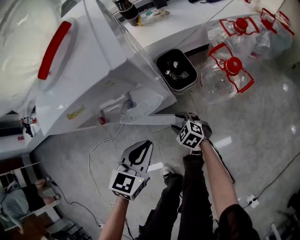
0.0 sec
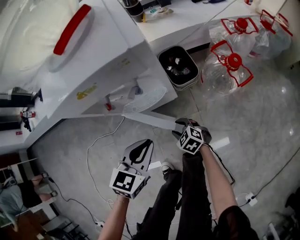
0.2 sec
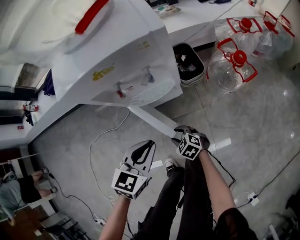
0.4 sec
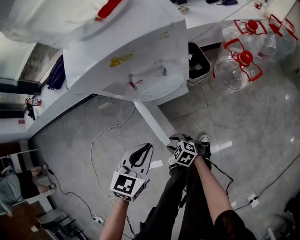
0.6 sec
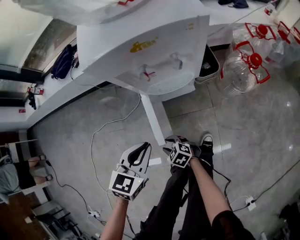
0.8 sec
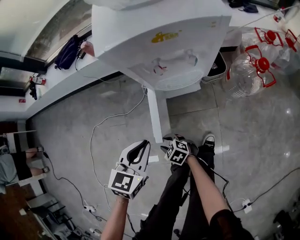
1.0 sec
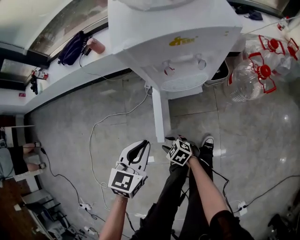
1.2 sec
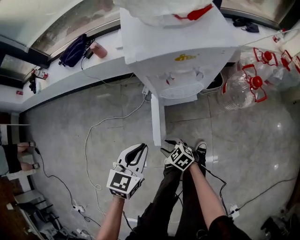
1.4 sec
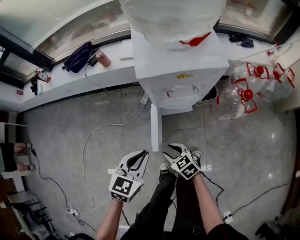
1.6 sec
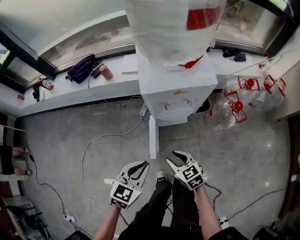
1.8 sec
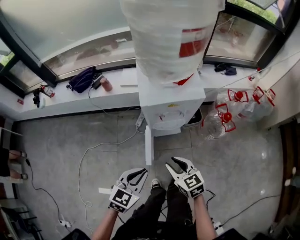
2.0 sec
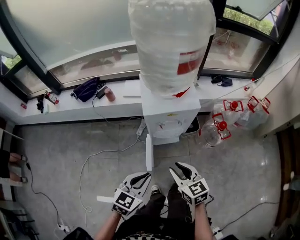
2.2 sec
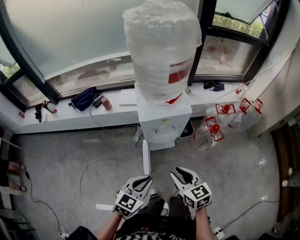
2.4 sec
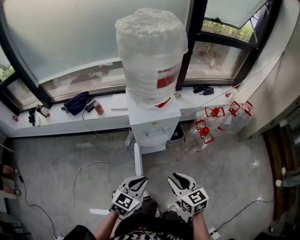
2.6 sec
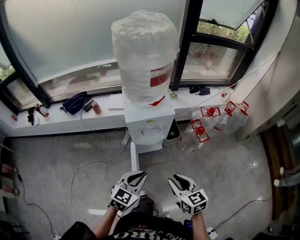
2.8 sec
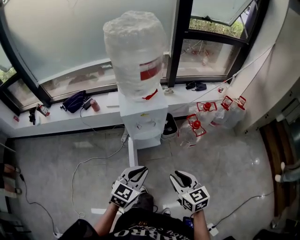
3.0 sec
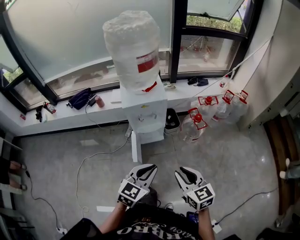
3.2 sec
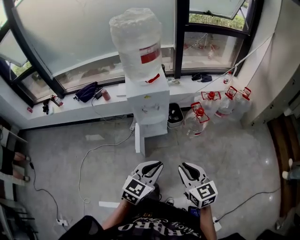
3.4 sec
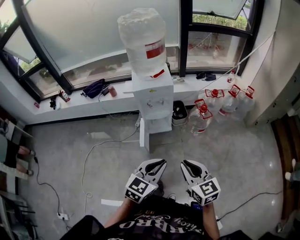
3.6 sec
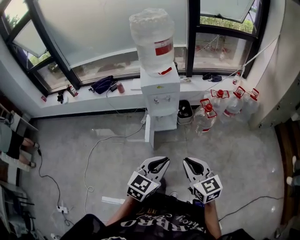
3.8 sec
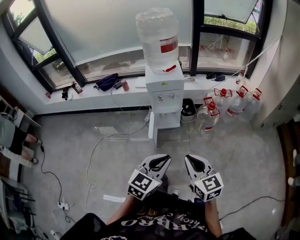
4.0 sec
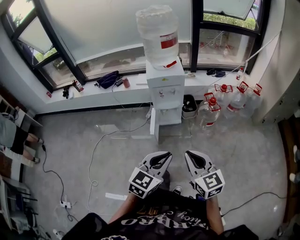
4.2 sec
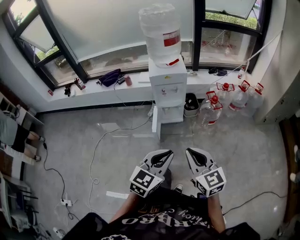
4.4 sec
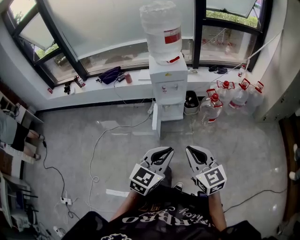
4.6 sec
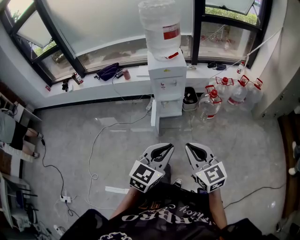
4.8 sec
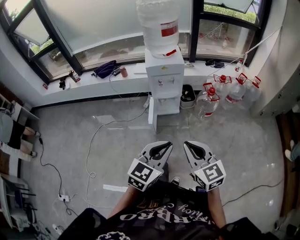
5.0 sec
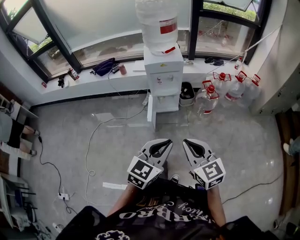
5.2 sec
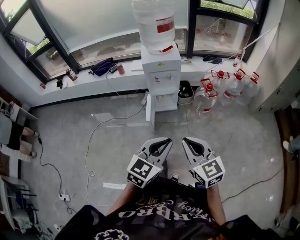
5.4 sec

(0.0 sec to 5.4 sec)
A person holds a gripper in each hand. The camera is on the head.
0.0 sec - 1.4 sec: Both grippers travel together to the left, roughly 25 cm.
1.4 sec - 2.8 sec: The left gripper moves upward, approximately 25 cm, and rotates about 20 degrees. Meanwhile the right gripper travels upward by roughly 50 cm, and rotates roughly 40 degrees.
2.8 sec - 4.0 sec: The right gripper goes some 25 cm backward; the left gripper goes some 30 cm backward and to the right.
4.0 sec - 5.4 sec: There are only small adjustments of the grippers.

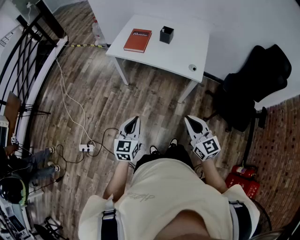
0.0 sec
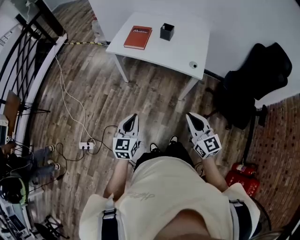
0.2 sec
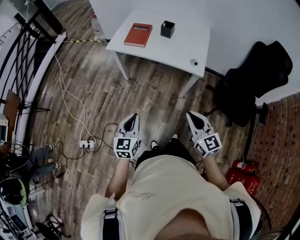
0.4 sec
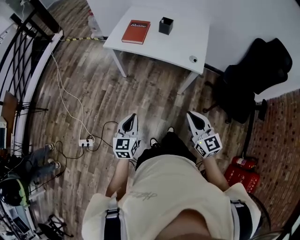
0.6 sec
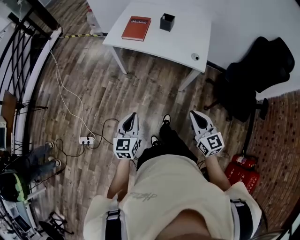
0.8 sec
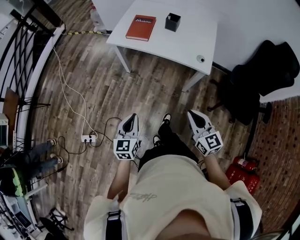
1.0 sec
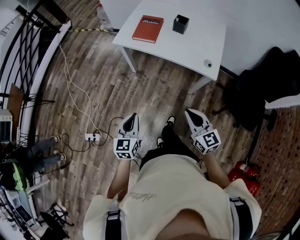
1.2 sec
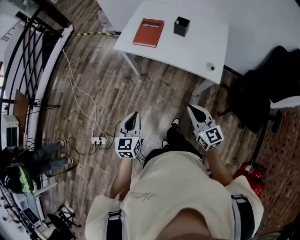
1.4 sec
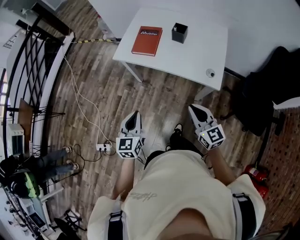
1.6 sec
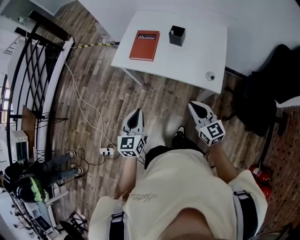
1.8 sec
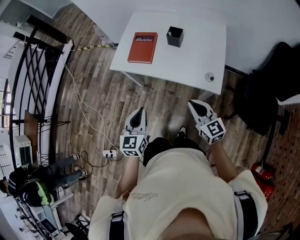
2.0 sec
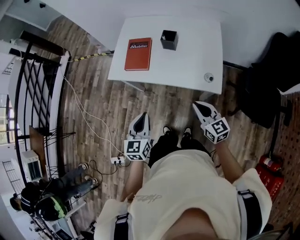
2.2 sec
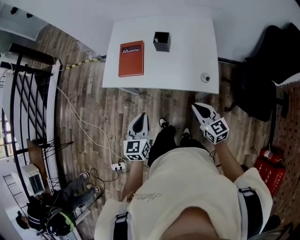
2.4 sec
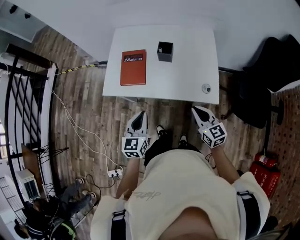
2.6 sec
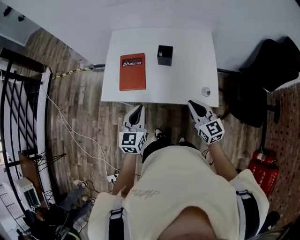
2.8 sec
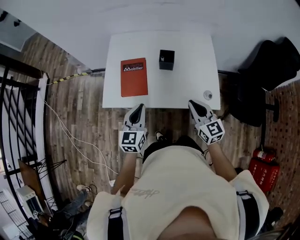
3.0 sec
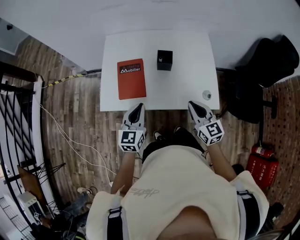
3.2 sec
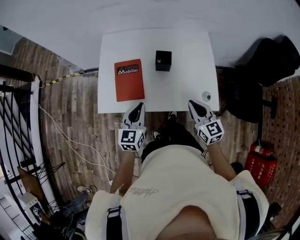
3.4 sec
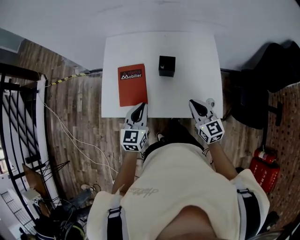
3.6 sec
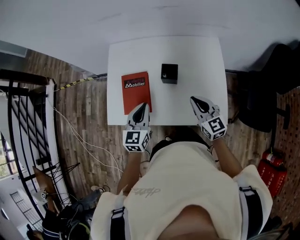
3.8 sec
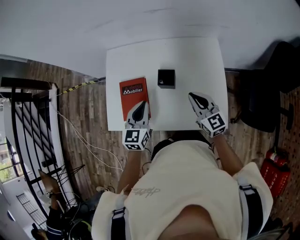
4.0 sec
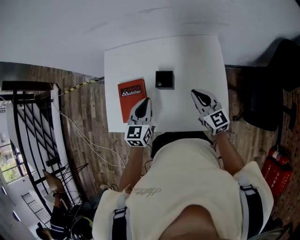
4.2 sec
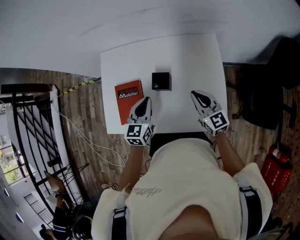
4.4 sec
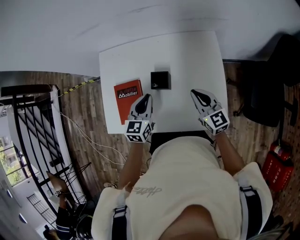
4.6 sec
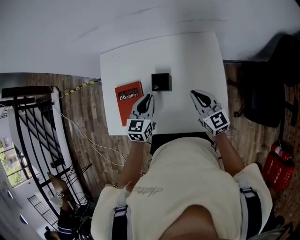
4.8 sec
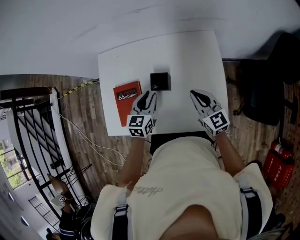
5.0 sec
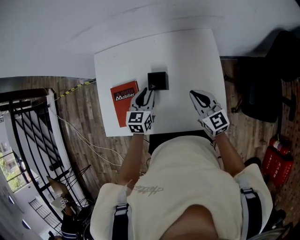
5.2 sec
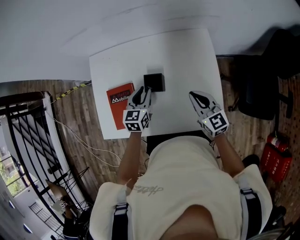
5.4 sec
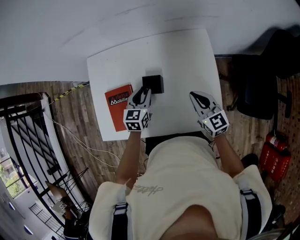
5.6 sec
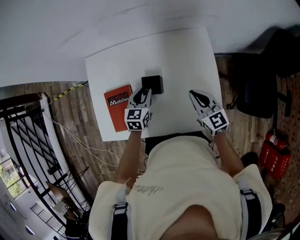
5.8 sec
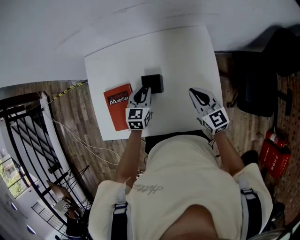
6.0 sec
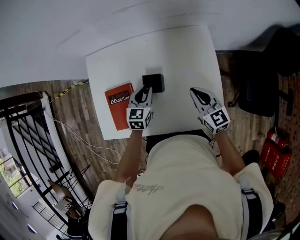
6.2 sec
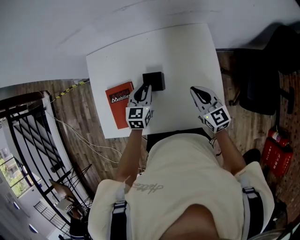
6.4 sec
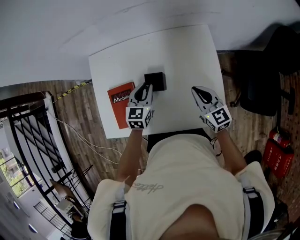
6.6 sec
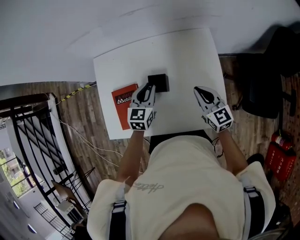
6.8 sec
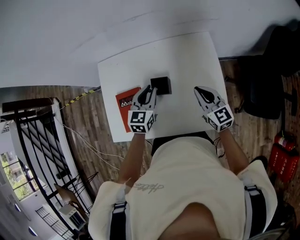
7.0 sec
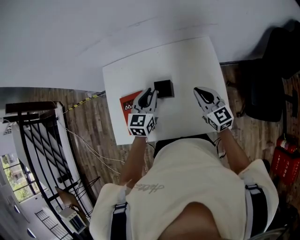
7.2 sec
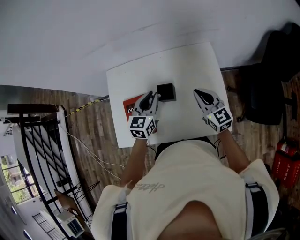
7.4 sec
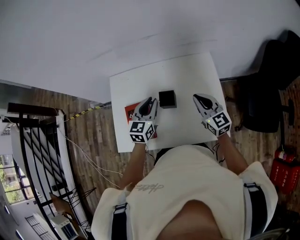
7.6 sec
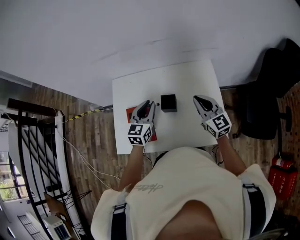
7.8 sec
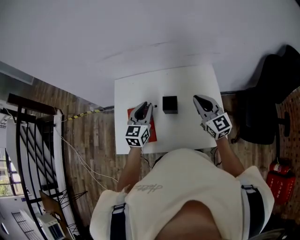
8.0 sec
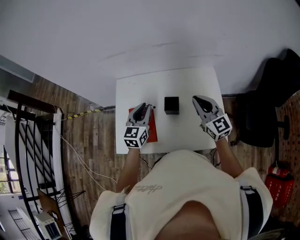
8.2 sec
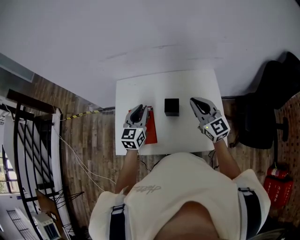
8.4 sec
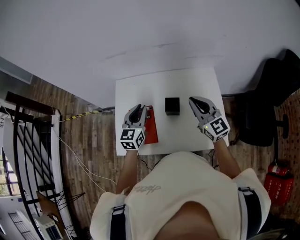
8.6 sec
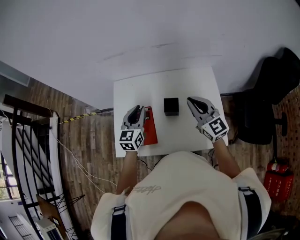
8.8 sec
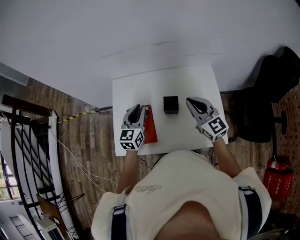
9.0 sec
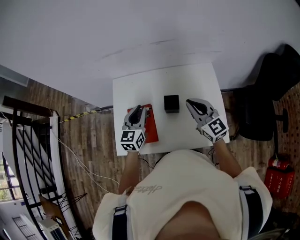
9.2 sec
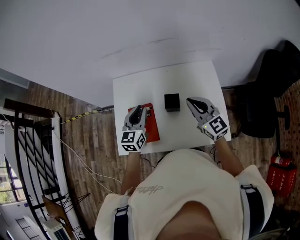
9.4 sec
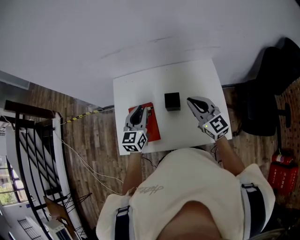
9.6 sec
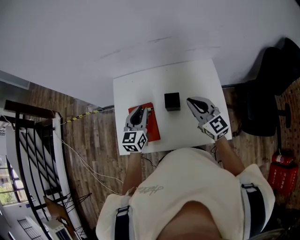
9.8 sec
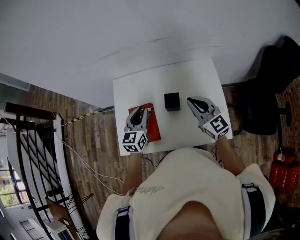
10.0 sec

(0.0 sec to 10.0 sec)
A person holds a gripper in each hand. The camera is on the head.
0.0 sec - 1.4 sec: Both grippers move forward, some 10 cm.
1.4 sec - 2.8 sec: Both grippers move forward, some 25 cm. The left gripper swivels approximately 20 degrees.
2.8 sec - 4.2 sec: The two grippers go roughly 25 cm forward.
4.2 sec - 5.8 sec: The left gripper heads downward and forward, covering approximately 10 cm, and opens up.
5.8 sec - 7.2 sec: The right gripper moves approximately 5 cm. The left gripper is displaced upward by some 10 cm.
7.2 sec - 8.6 sec: The left gripper is displaced to the left and upward by roughly 15 cm. The right gripper shifts some 15 cm upward and to the left.
8.6 sec - 10.0 sec: There are only small adjustments of the grippers.

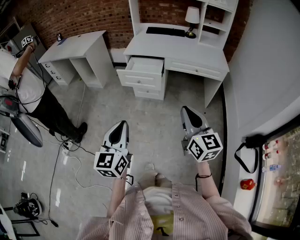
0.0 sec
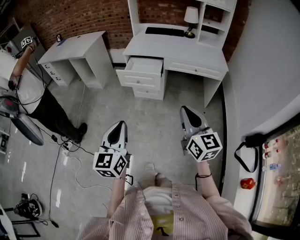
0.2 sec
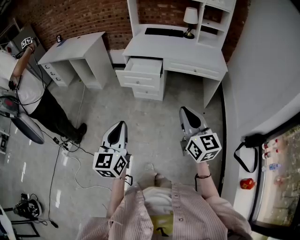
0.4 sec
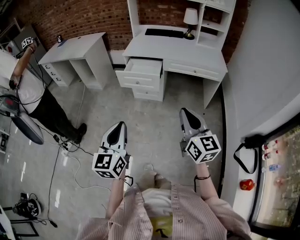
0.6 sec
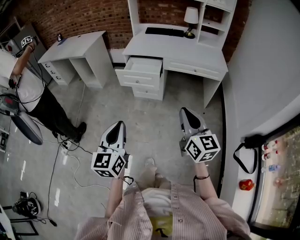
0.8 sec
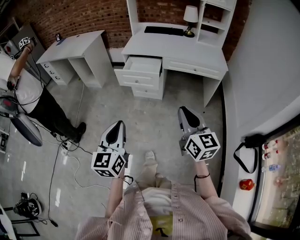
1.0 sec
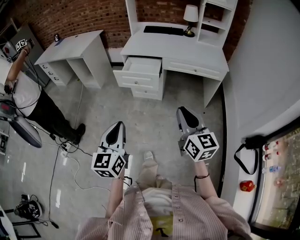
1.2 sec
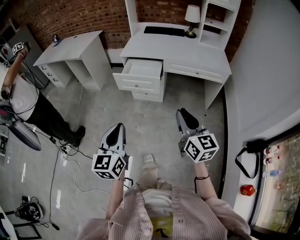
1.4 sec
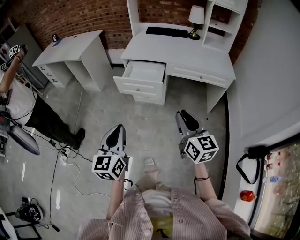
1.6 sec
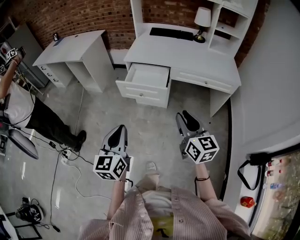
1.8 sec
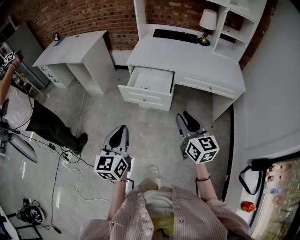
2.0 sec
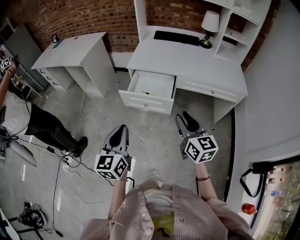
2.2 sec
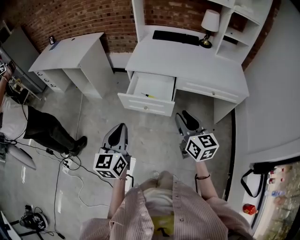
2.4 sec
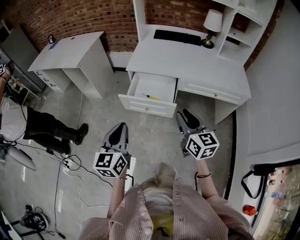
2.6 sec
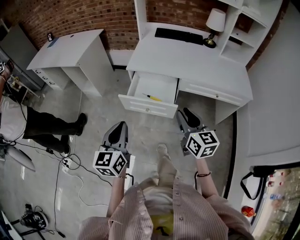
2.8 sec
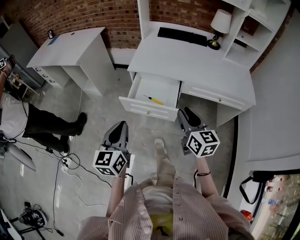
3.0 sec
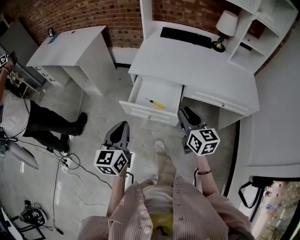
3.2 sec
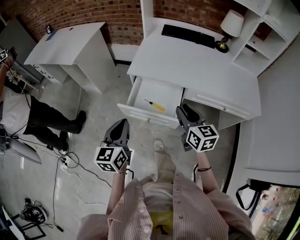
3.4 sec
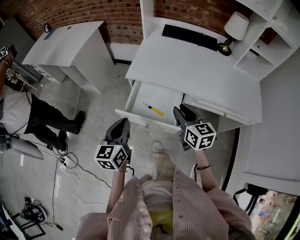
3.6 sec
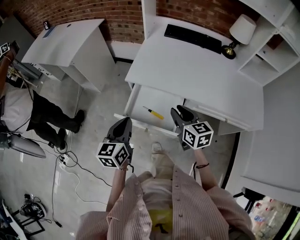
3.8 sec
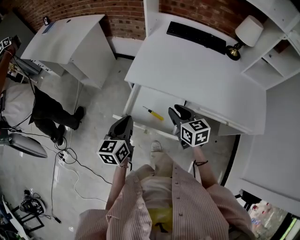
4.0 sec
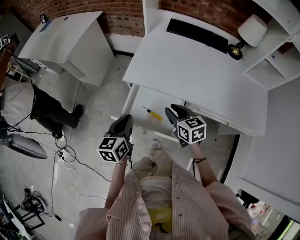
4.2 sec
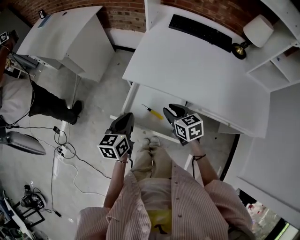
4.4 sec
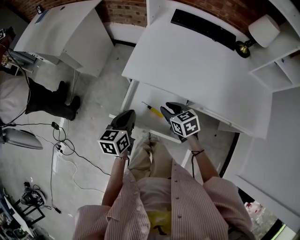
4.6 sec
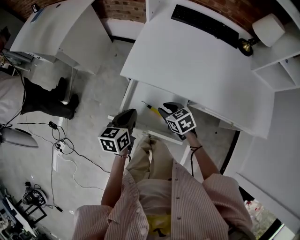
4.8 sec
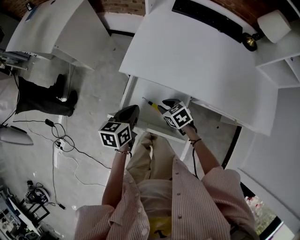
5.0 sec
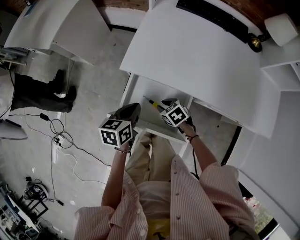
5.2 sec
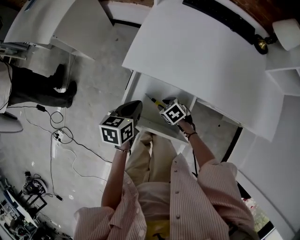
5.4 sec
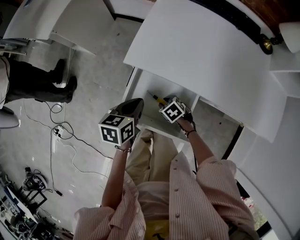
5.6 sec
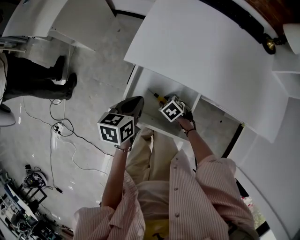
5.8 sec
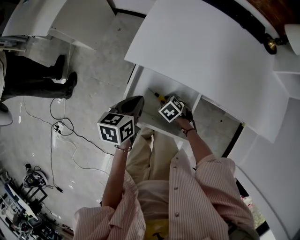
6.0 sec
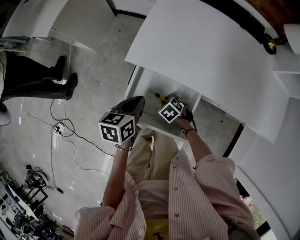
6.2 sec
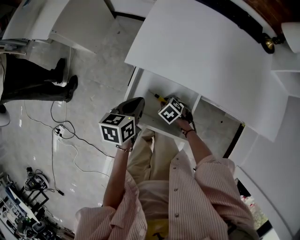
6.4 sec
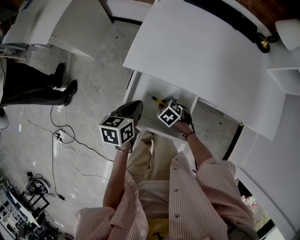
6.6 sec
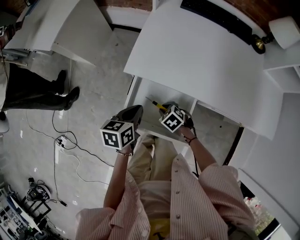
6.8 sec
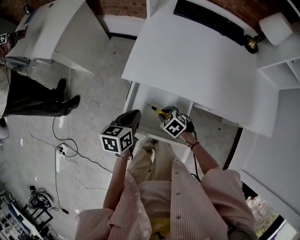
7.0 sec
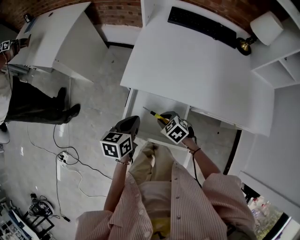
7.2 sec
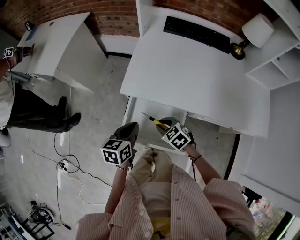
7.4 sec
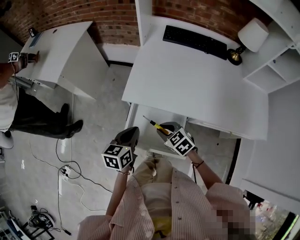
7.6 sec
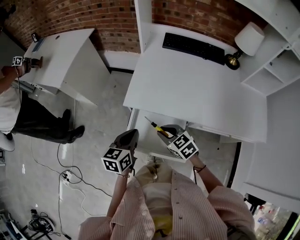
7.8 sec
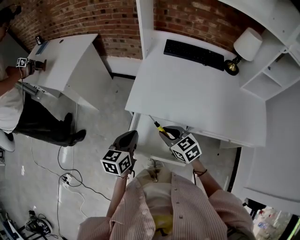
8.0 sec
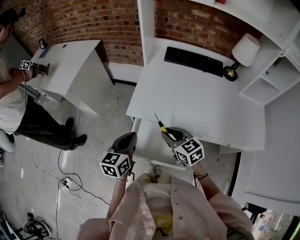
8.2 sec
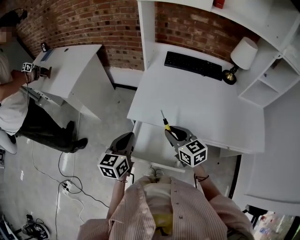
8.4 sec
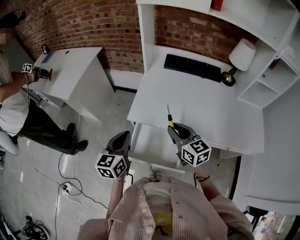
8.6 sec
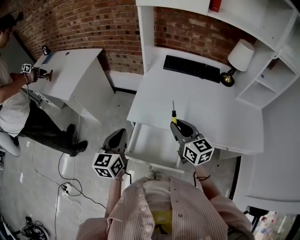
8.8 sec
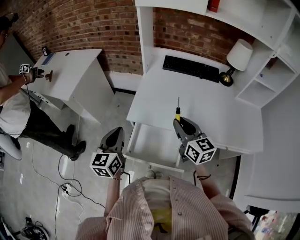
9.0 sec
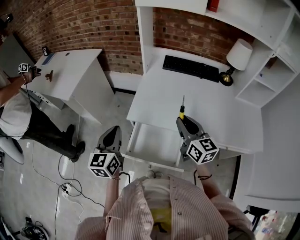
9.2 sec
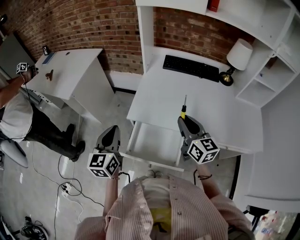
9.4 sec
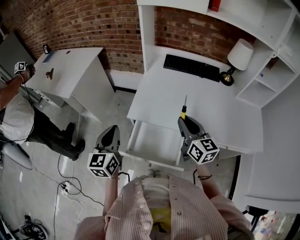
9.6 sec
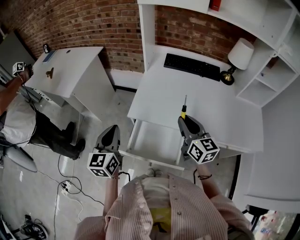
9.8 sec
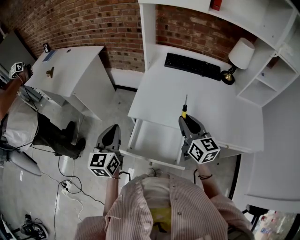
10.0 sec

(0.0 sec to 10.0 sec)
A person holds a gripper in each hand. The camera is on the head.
0.0 sec - 1.4 sec: Both grippers move forward, some 5 cm.
1.4 sec - 2.8 sec: Both grippers move forward, some 30 cm.
2.8 sec - 4.2 sec: Both grippers move forward and downward, about 30 cm. The right gripper changes its angle by some 30 degrees.
4.2 sec - 5.8 sec: The right gripper moves downward, roughly 25 cm, and angles its fingers downward, by some 40 degrees. Meanwhile the left gripper travels downward and forward by approximately 15 cm, and turns by approximately 20 degrees.
5.8 sec - 7.2 sec: The right gripper is displaced upward by approximately 10 cm.
7.2 sec - 8.6 sec: The left gripper travels upward by roughly 15 cm, and rotates approximately 30 degrees; the right gripper travels upward by about 25 cm, and points its fingers some 40 degrees further upward.
8.6 sec - 10.0 sec: The right gripper shifts by approximately 5 cm; the left gripper ends up roughly 5 cm from where it was.
